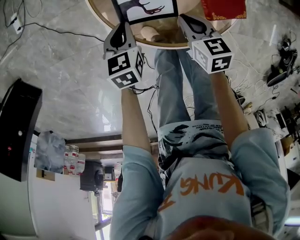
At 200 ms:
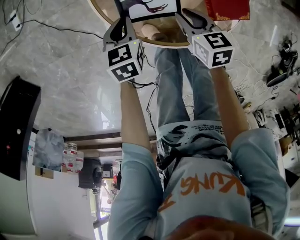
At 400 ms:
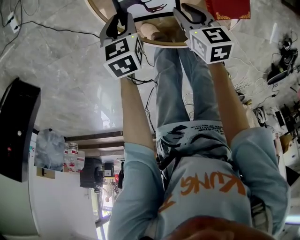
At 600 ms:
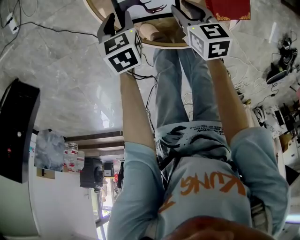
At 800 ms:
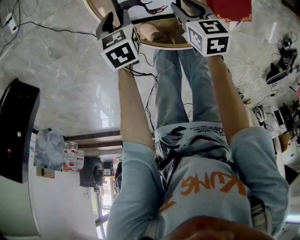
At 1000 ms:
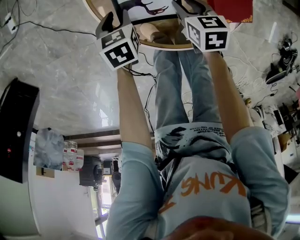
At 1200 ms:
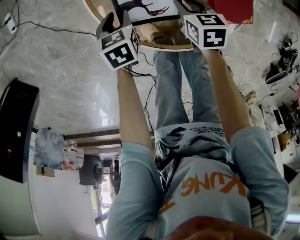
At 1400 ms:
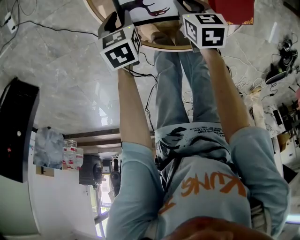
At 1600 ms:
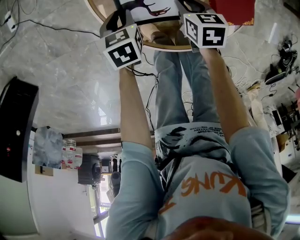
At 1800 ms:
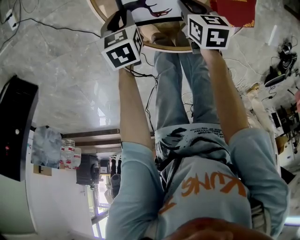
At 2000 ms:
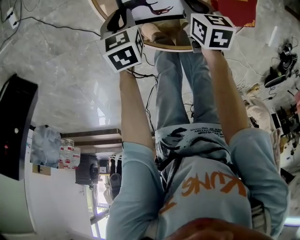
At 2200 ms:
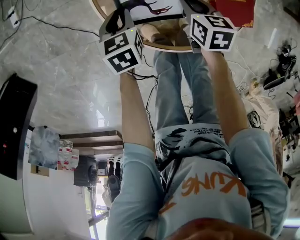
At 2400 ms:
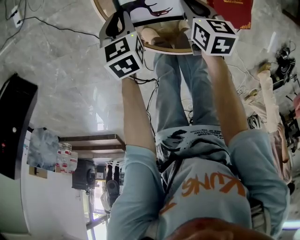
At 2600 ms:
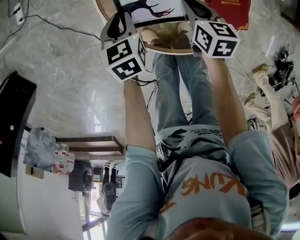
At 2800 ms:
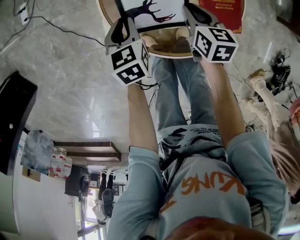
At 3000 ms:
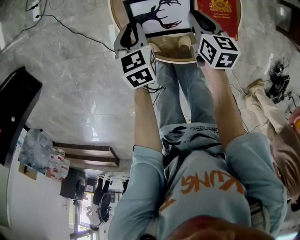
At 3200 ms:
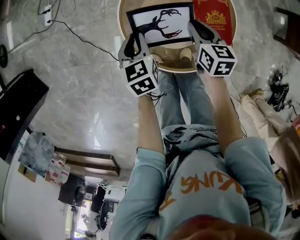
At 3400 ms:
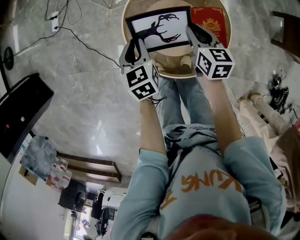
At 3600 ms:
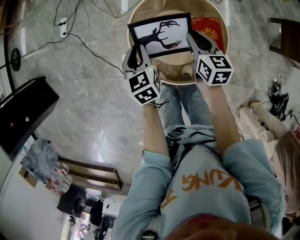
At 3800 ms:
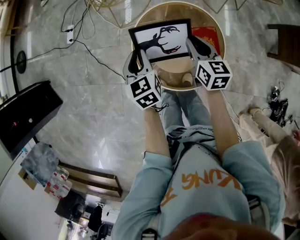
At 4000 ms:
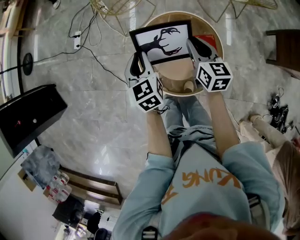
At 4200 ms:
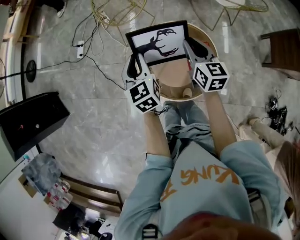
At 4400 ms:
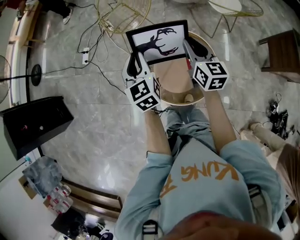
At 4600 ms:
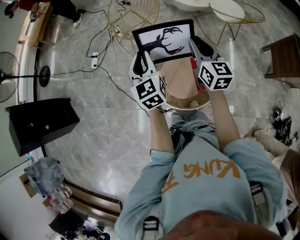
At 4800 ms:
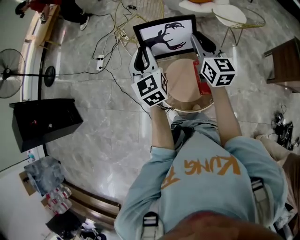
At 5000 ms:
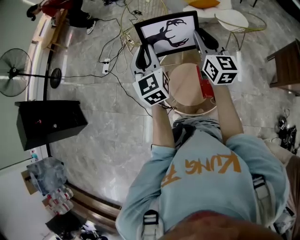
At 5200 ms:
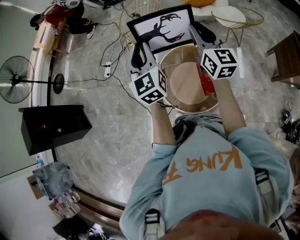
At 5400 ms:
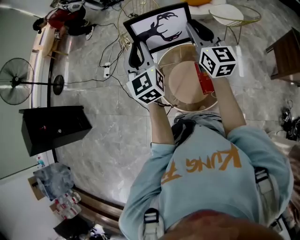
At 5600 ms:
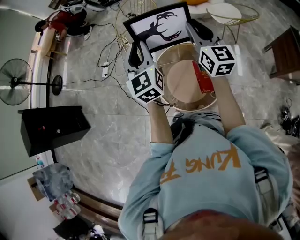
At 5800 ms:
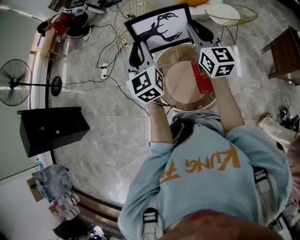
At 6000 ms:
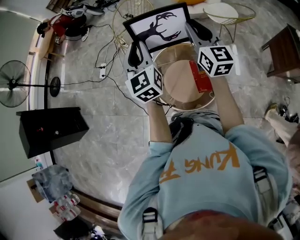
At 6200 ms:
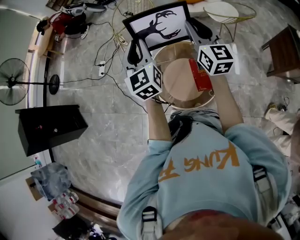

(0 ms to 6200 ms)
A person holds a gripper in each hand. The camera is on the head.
0 ms - 1600 ms: The right gripper shifts approximately 10 cm downward and forward, and opens; the left gripper is displaced downward by approximately 5 cm, and opens its fingers.
1600 ms - 3200 ms: The two grippers go approximately 20 cm upward. The right gripper swivels some 20 degrees; the left gripper turns by some 20 degrees.
3200 ms - 4600 ms: The grippers both shift upward by roughly 40 cm. The right gripper swivels roughly 30 degrees. The left gripper angles its fingers upward, by about 30 degrees.
4600 ms - 6200 ms: The grippers both shift upward by roughly 10 cm.

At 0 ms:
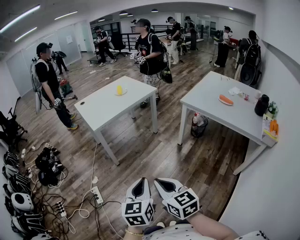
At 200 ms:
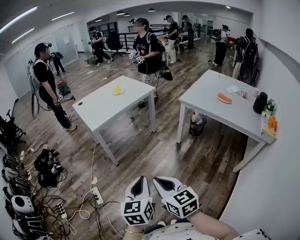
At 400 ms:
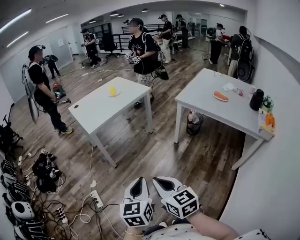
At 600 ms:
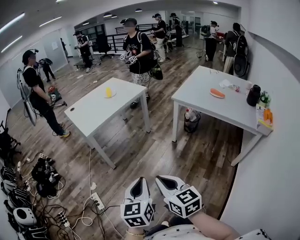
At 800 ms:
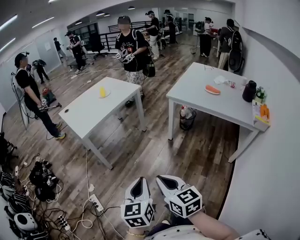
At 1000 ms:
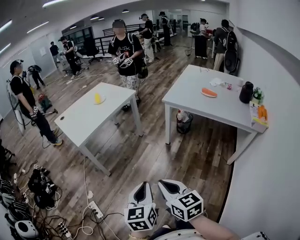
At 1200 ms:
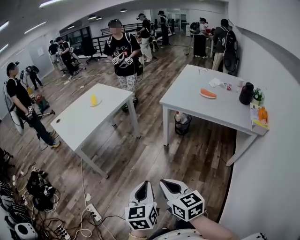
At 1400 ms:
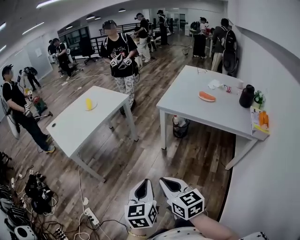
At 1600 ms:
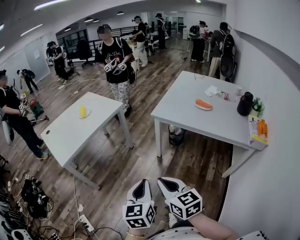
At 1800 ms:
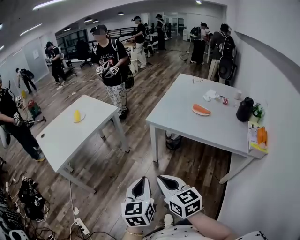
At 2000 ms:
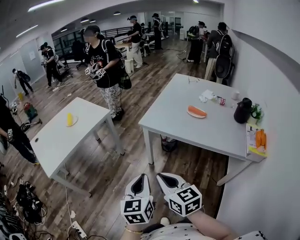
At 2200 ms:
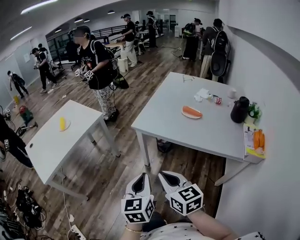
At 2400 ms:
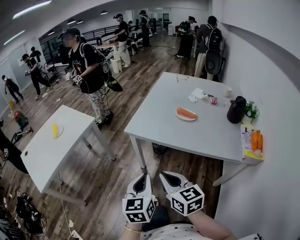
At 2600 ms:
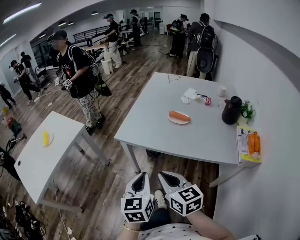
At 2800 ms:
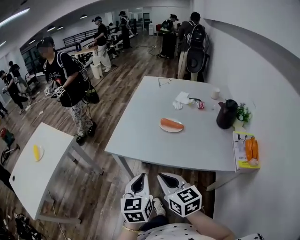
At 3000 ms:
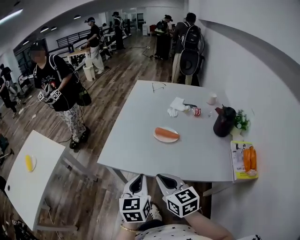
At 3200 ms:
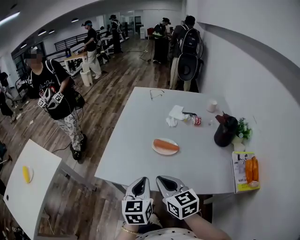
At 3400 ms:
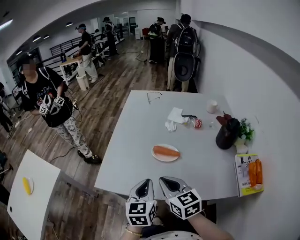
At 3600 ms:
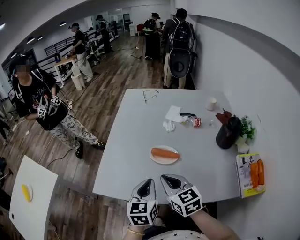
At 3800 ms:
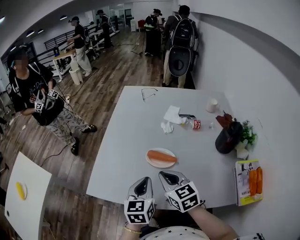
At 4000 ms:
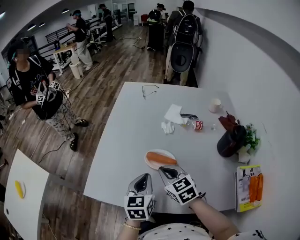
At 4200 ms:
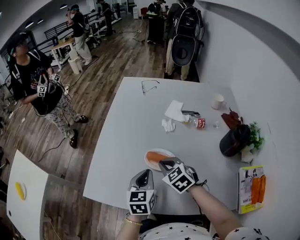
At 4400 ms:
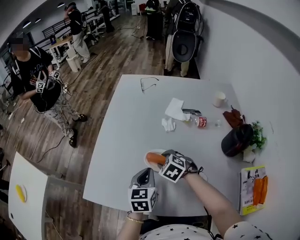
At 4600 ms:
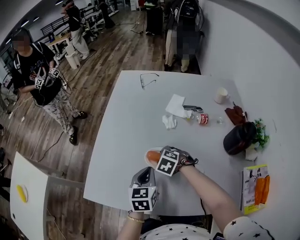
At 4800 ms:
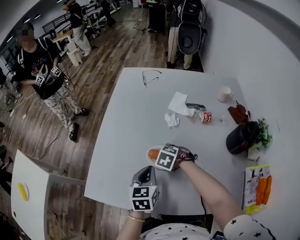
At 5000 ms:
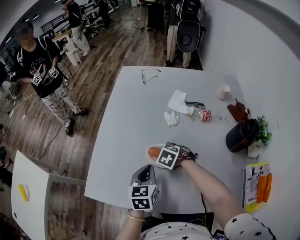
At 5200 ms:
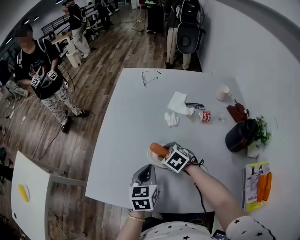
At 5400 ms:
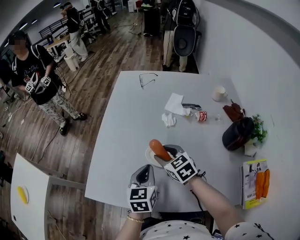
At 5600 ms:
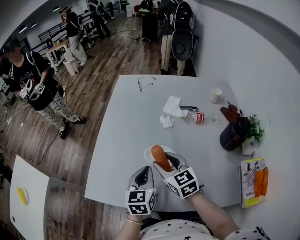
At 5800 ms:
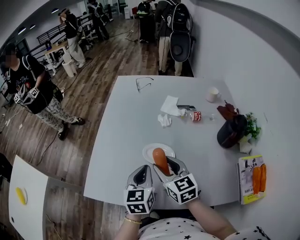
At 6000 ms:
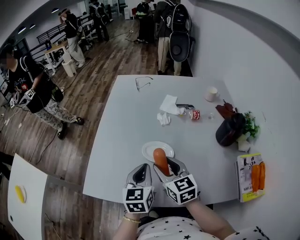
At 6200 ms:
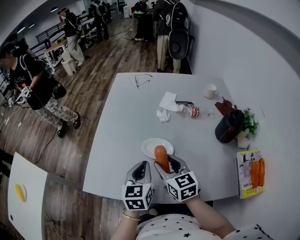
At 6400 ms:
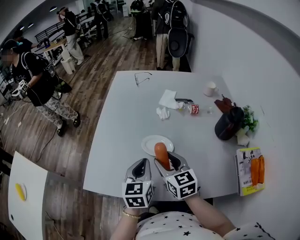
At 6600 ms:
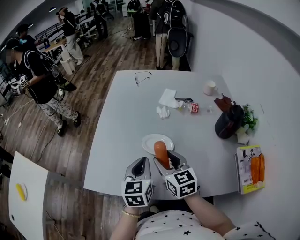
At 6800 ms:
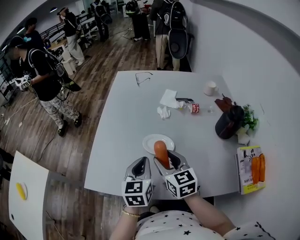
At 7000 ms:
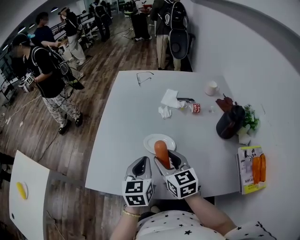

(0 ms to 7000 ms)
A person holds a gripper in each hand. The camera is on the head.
0 ms - 1400 ms: The left gripper is displaced forward and to the right by some 15 cm, while the right gripper is displaced to the right and forward by roughly 15 cm.
1400 ms - 2800 ms: Both grippers are carried forward and to the right, some 50 cm.
2800 ms - 4200 ms: The left gripper shifts approximately 35 cm forward and to the right. The right gripper moves forward, some 35 cm, and changes its angle by some 30 degrees.
4200 ms - 5600 ms: The right gripper travels downward and back again, about 10 cm each way, changes its angle by some 30 degrees, and opens up.
5600 ms - 7000 ms: The right gripper travels backward by roughly 5 cm.

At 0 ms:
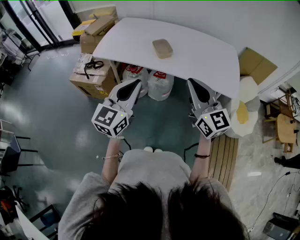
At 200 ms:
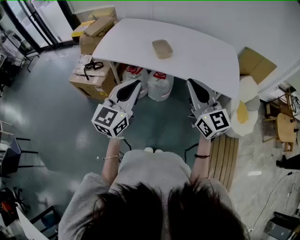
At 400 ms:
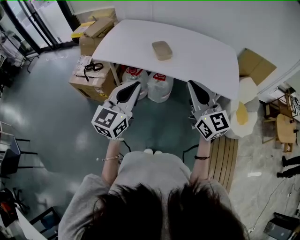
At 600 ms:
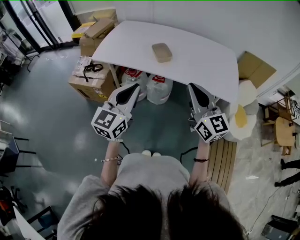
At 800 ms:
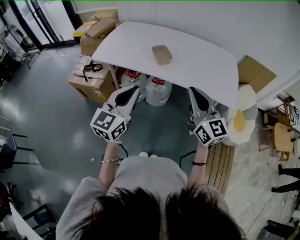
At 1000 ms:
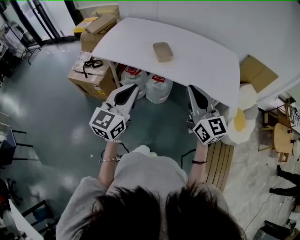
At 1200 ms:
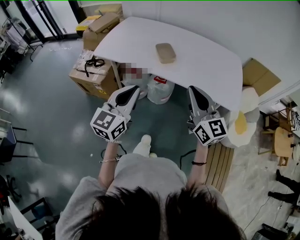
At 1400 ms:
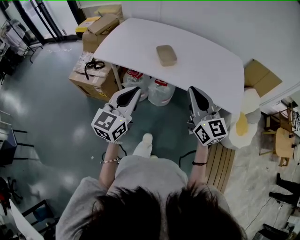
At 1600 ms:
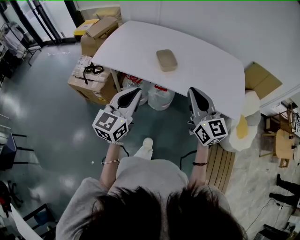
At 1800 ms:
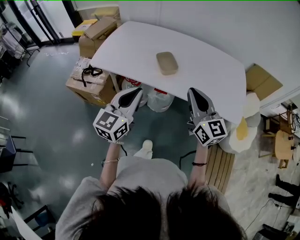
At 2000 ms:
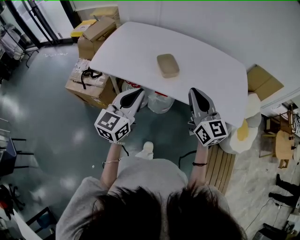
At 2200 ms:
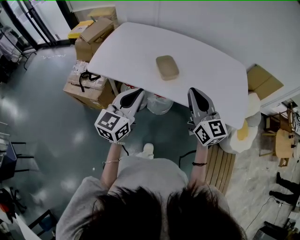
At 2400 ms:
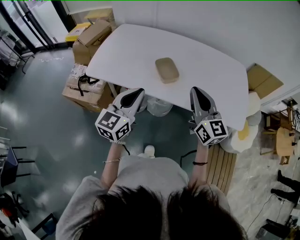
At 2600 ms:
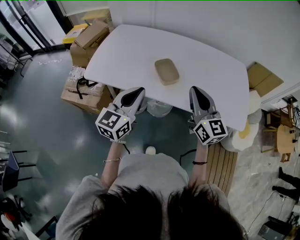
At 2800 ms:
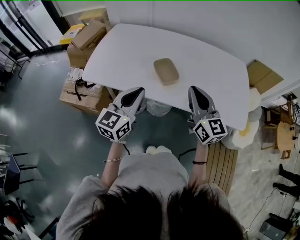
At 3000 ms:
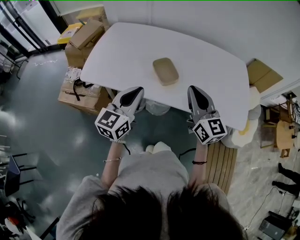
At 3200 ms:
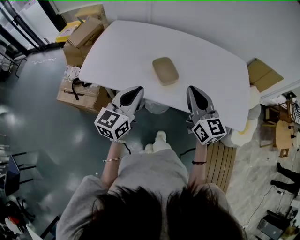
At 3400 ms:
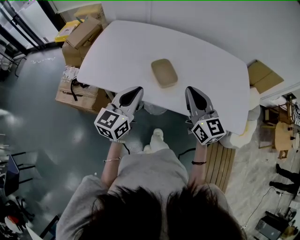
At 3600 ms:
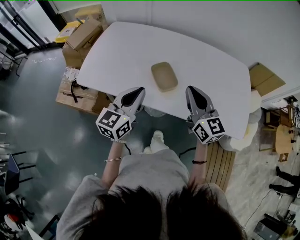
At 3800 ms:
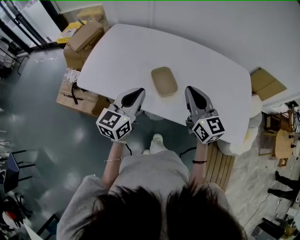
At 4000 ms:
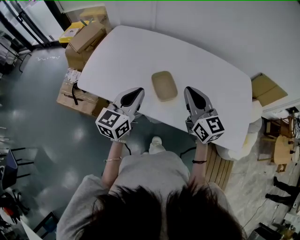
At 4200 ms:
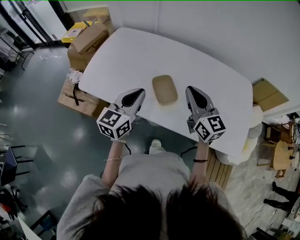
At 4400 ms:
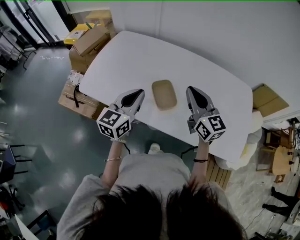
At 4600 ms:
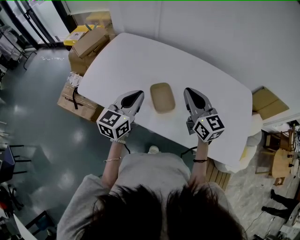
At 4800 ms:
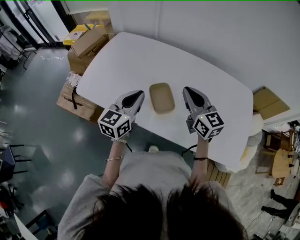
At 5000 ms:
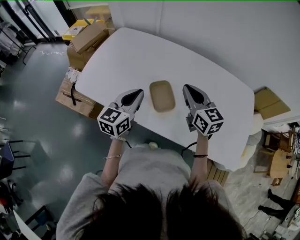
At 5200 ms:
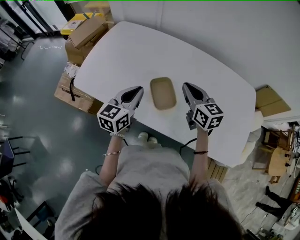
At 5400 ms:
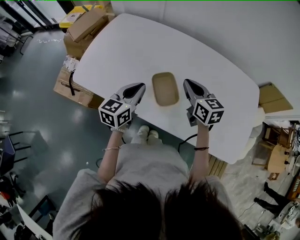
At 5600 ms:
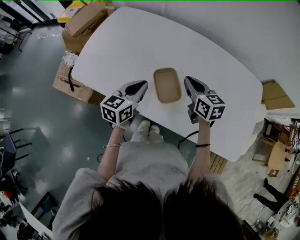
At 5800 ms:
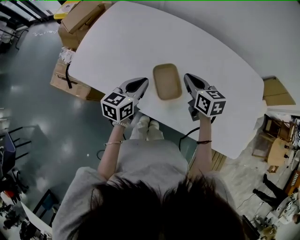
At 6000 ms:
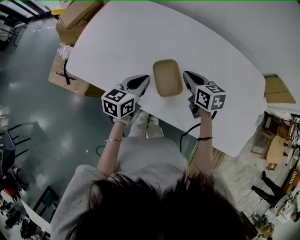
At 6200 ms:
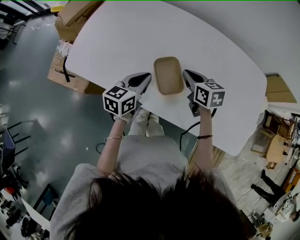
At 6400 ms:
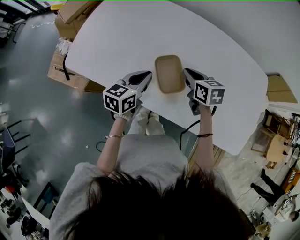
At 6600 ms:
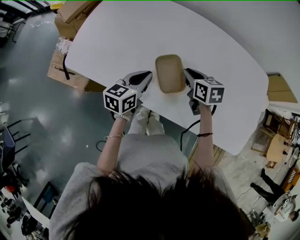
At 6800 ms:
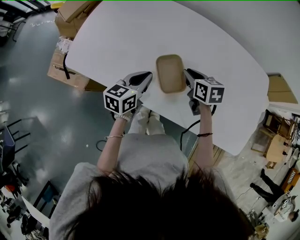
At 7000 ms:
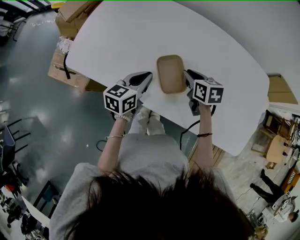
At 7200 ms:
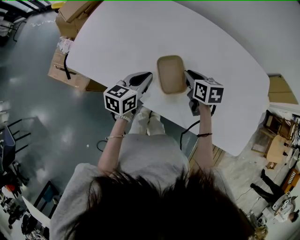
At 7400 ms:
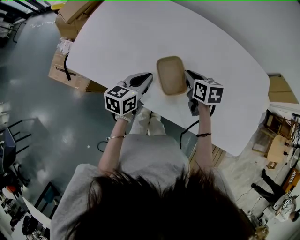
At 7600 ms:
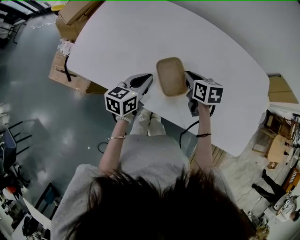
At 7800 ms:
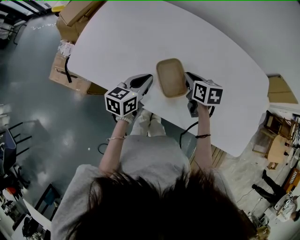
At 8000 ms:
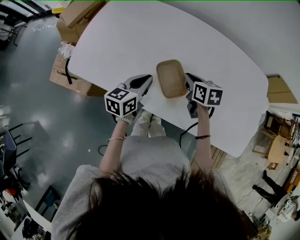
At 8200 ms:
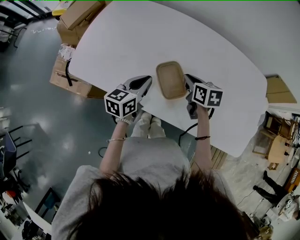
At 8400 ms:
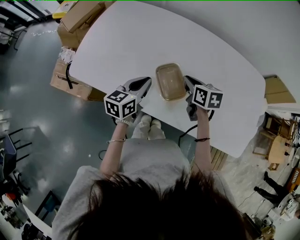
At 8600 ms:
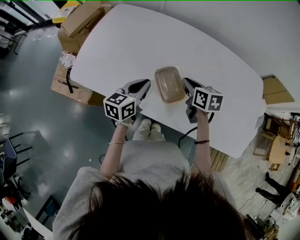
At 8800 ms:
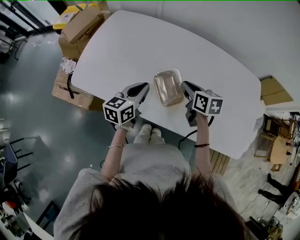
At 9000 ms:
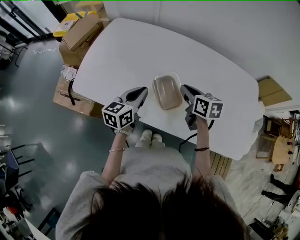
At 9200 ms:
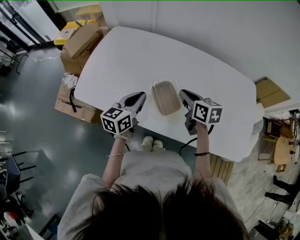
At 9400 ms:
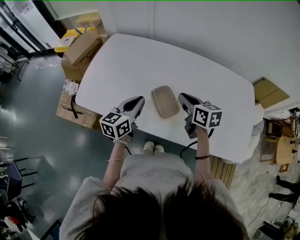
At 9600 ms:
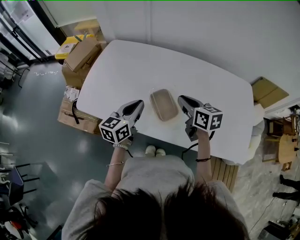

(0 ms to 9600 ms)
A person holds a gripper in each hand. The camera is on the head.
0 ms - 1600 ms: Both grippers move forward, some 10 cm.
1600 ms - 3200 ms: Both grippers move forward, roughly 15 cm.
3200 ms - 4800 ms: The grippers both shift forward by about 15 cm.
4800 ms - 6400 ms: The two grippers go about 15 cm downward. The right gripper tilts its fingers about 40 degrees downward. The left gripper rotates roughly 20 degrees.
6400 ms - 8000 ms: The grippers make only small movements.
8000 ms - 9600 ms: Both grippers travel together upward, approximately 10 cm.

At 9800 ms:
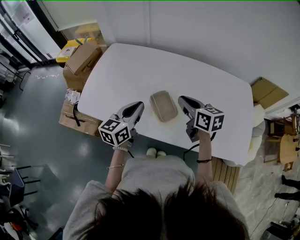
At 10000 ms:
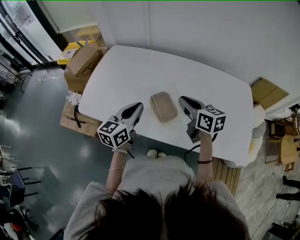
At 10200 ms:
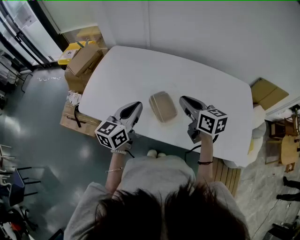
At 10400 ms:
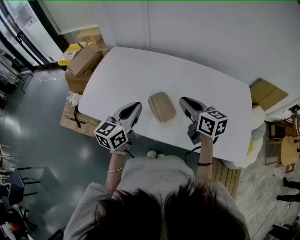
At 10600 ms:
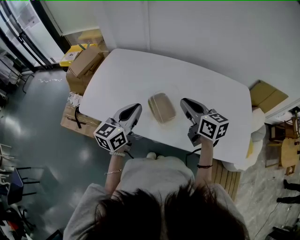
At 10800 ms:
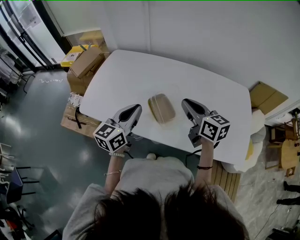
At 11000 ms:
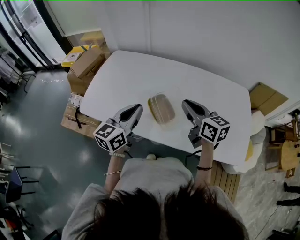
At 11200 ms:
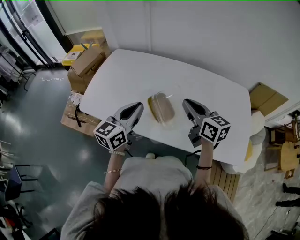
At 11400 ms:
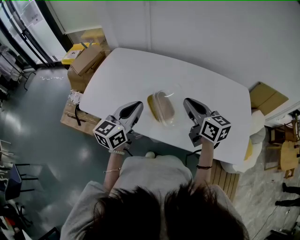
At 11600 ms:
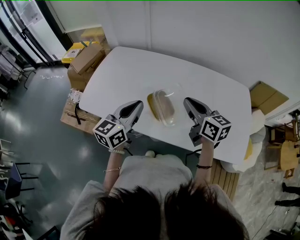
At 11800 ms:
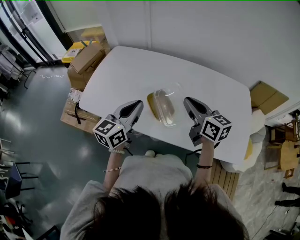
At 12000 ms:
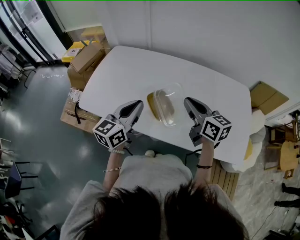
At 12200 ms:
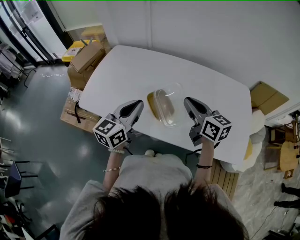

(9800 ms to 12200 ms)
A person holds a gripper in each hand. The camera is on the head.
9800 ms - 11000 ms: The grippers both shift upward by roughly 5 cm.
11000 ms - 12200 ms: Both grippers stay put.
